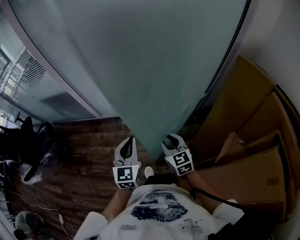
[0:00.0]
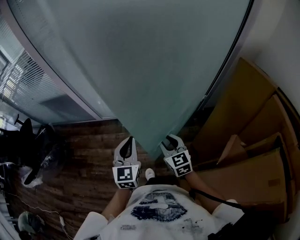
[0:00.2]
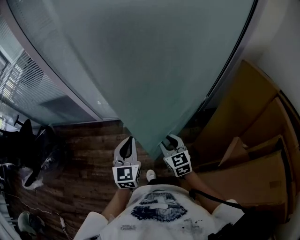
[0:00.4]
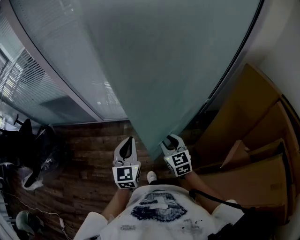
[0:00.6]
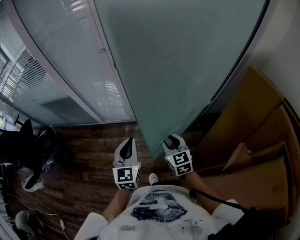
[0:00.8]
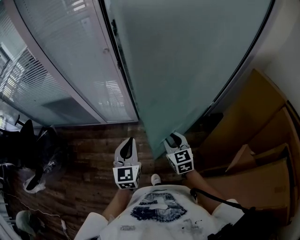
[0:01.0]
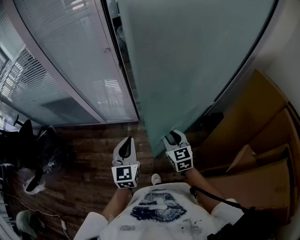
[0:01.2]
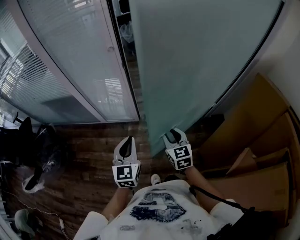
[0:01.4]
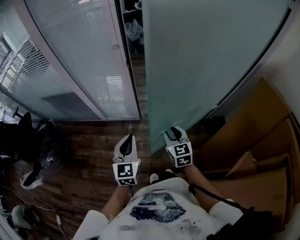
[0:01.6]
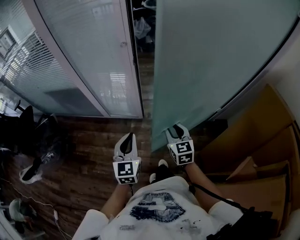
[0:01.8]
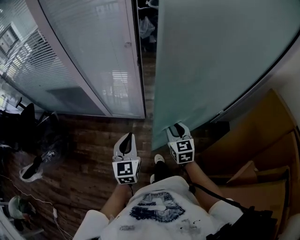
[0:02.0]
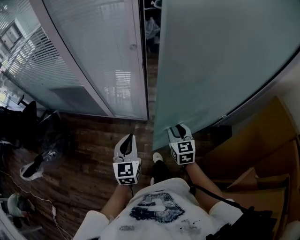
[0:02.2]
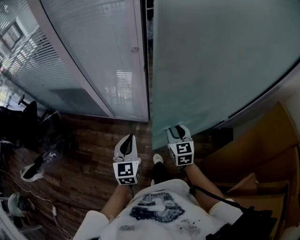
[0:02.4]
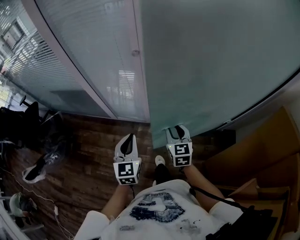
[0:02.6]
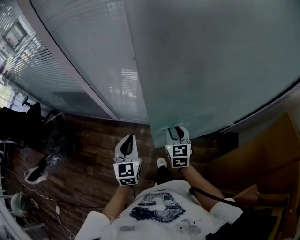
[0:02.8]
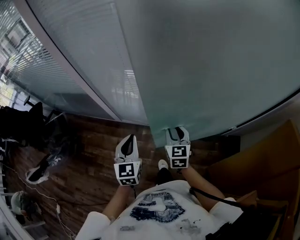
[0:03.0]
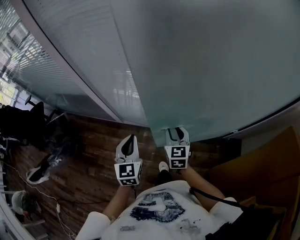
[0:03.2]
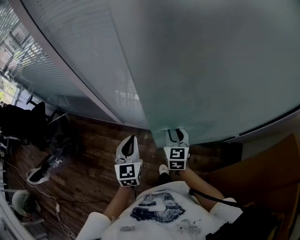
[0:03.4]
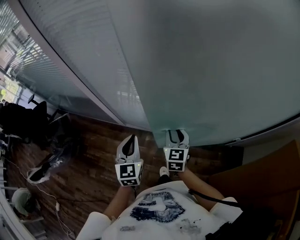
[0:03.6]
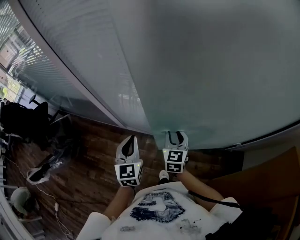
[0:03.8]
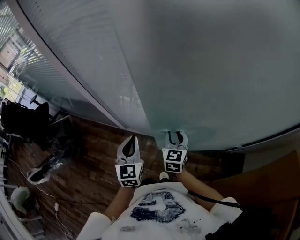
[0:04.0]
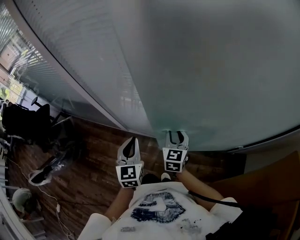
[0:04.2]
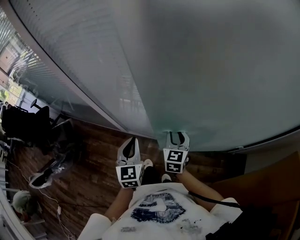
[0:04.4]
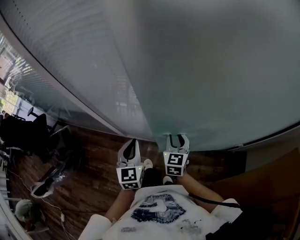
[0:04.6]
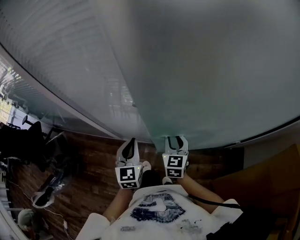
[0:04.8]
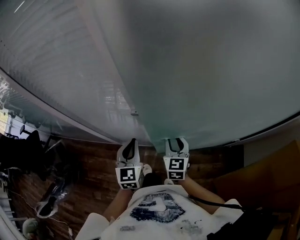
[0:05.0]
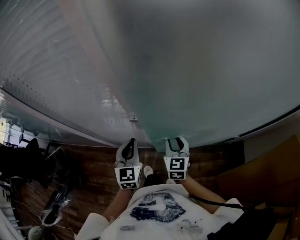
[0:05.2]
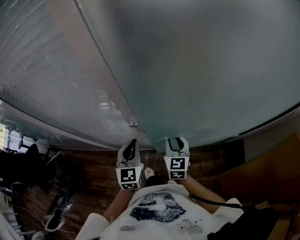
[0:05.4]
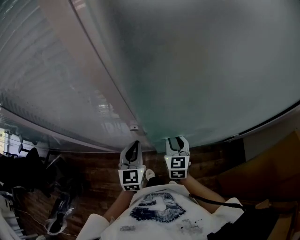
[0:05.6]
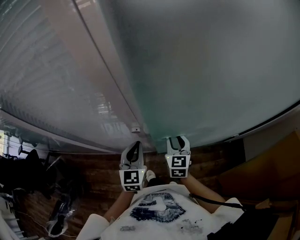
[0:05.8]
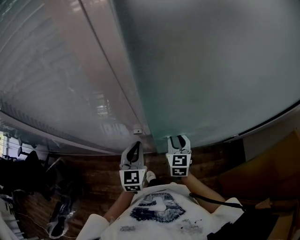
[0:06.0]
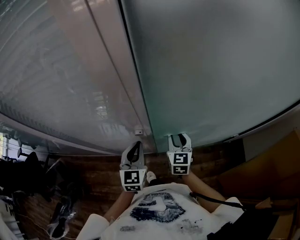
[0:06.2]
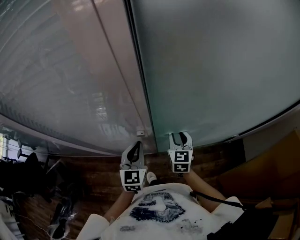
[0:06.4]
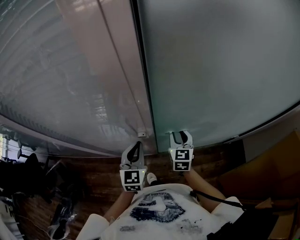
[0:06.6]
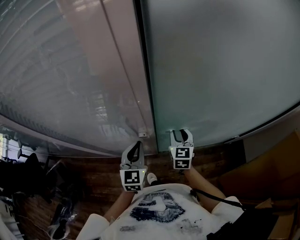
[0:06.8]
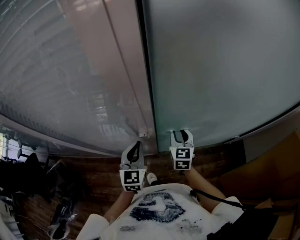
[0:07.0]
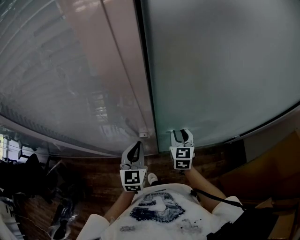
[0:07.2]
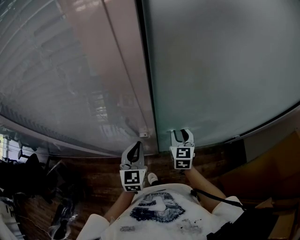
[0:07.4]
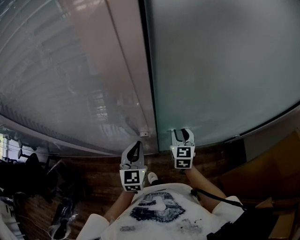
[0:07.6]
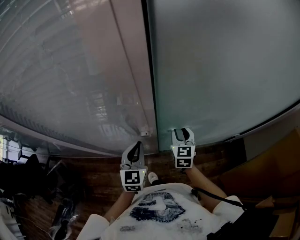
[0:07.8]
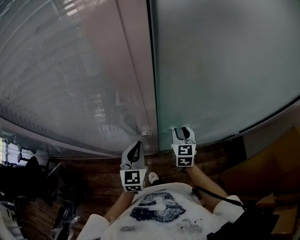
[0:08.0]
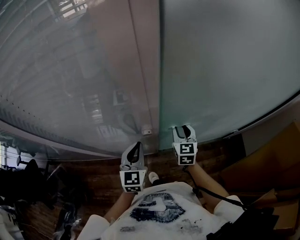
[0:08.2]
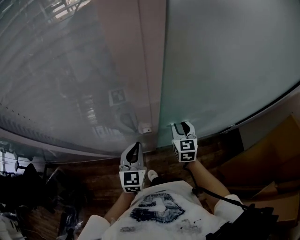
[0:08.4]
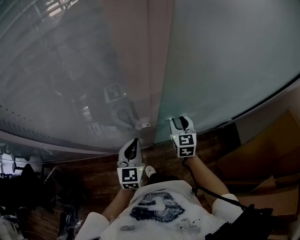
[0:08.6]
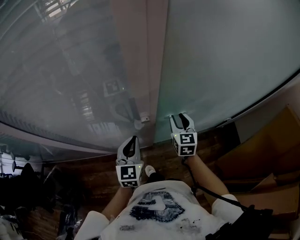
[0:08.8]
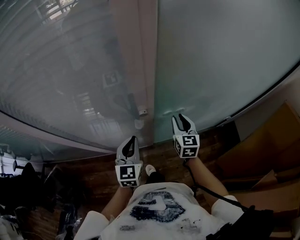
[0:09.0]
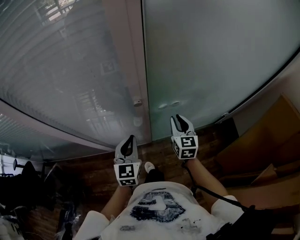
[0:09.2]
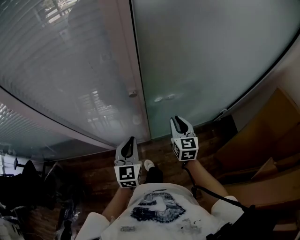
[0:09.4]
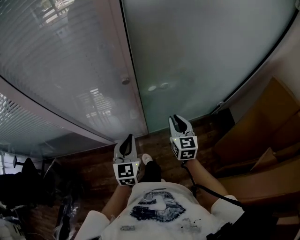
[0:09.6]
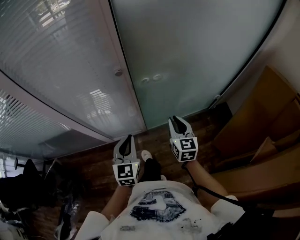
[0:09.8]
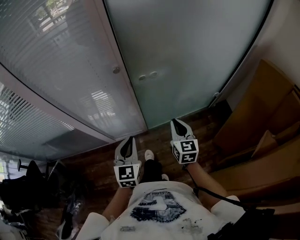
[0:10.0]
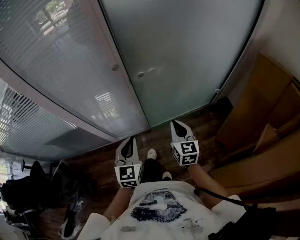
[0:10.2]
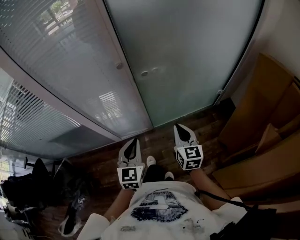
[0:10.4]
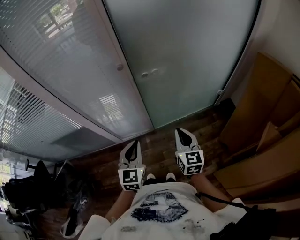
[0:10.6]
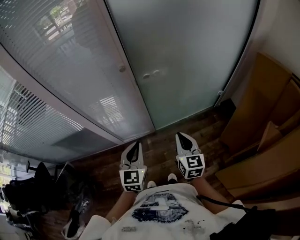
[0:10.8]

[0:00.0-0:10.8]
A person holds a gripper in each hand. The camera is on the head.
0:00.0 to 0:01.6: Both grippers move forward and to the left, about 15 cm.
0:01.6 to 0:03.0: The grippers both shift forward by some 15 cm.
0:03.0 to 0:04.6: The grippers both shift forward by approximately 15 cm.
0:04.6 to 0:06.2: Both grippers travel together forward, roughly 10 cm.
0:06.2 to 0:07.8: The grippers make only small movements.
0:07.8 to 0:09.2: The grippers both shift backward by some 10 cm.
0:09.2 to 0:10.8: The grippers both shift backward by some 25 cm. The right gripper closes up.

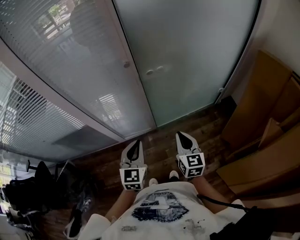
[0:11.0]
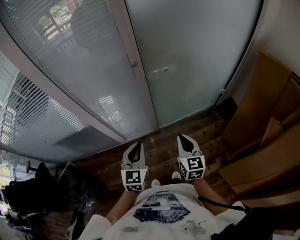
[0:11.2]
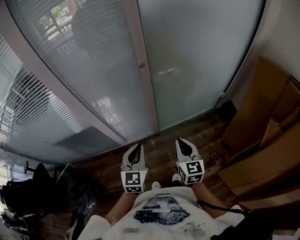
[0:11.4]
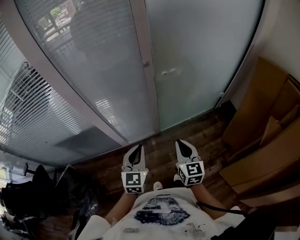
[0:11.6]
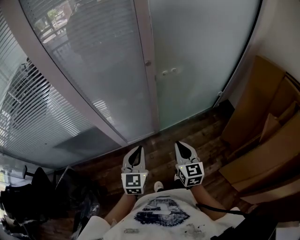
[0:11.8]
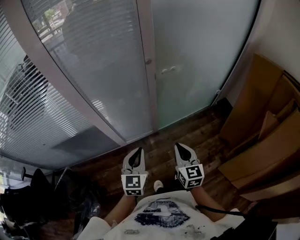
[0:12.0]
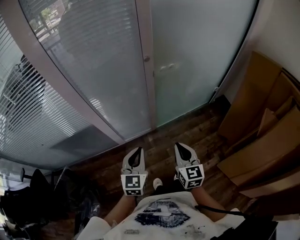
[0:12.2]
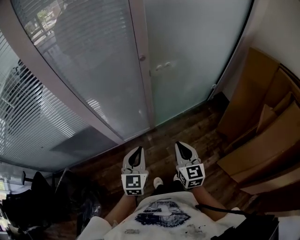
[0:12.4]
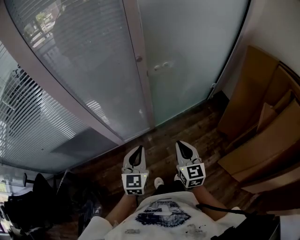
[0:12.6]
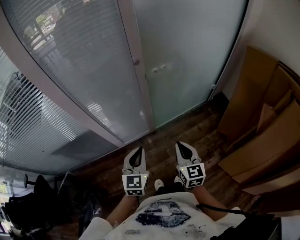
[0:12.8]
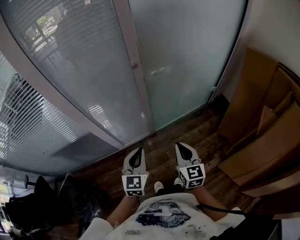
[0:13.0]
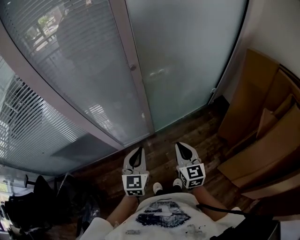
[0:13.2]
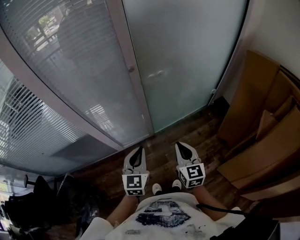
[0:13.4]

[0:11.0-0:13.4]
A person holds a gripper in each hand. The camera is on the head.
0:11.0 to 0:12.2: Both grippers move to the left and backward, roughly 15 cm.
0:12.2 to 0:13.4: Both grippers move to the right, some 5 cm.

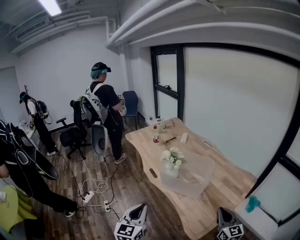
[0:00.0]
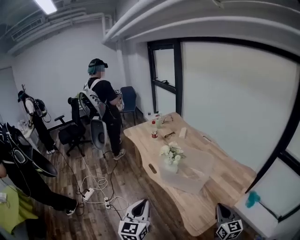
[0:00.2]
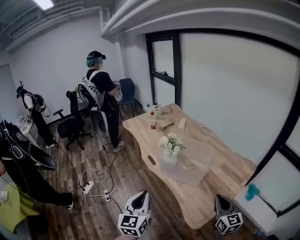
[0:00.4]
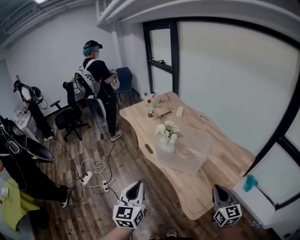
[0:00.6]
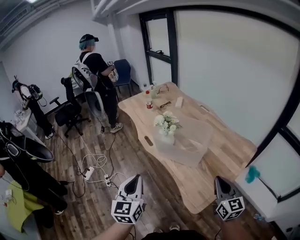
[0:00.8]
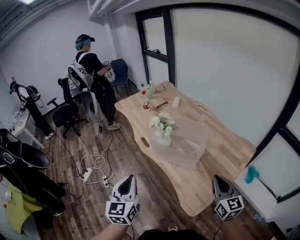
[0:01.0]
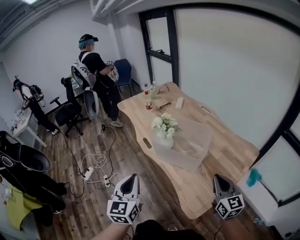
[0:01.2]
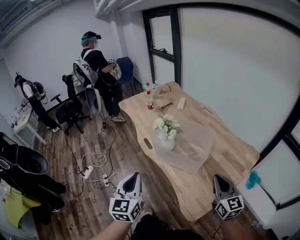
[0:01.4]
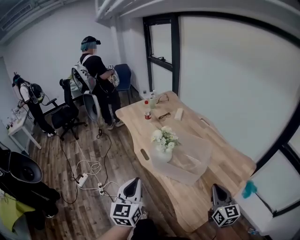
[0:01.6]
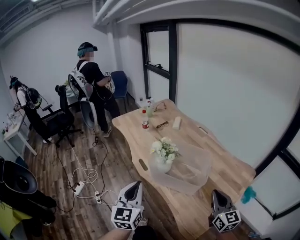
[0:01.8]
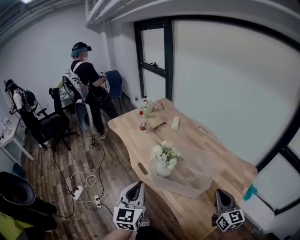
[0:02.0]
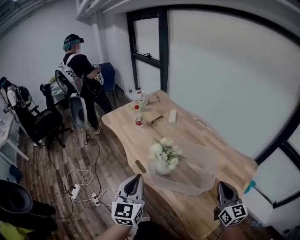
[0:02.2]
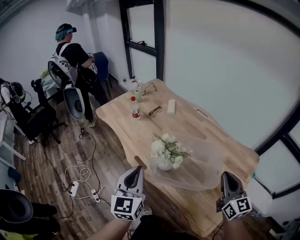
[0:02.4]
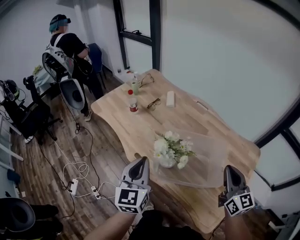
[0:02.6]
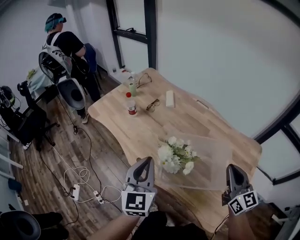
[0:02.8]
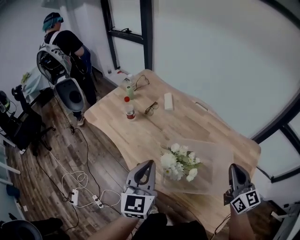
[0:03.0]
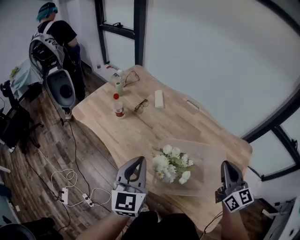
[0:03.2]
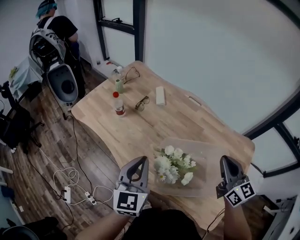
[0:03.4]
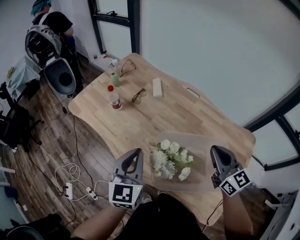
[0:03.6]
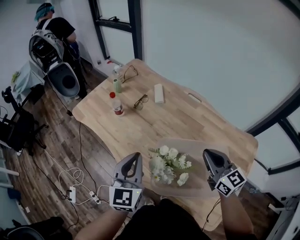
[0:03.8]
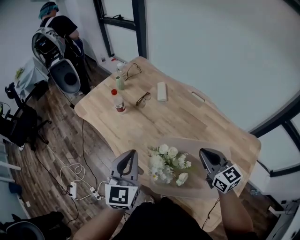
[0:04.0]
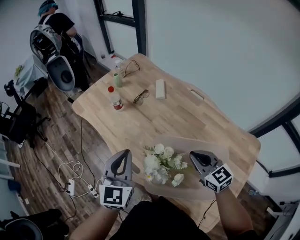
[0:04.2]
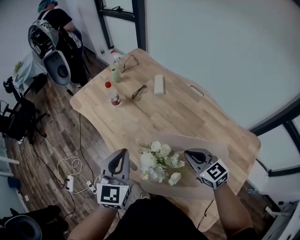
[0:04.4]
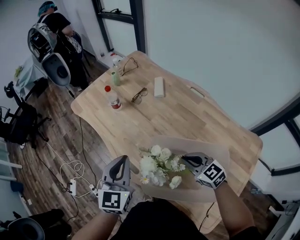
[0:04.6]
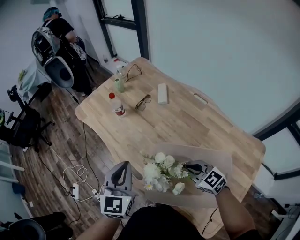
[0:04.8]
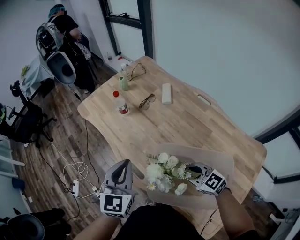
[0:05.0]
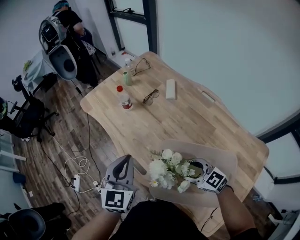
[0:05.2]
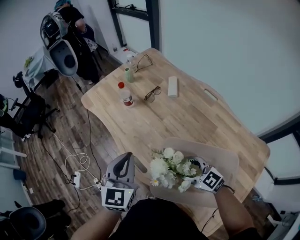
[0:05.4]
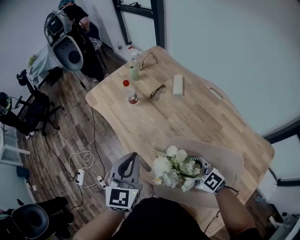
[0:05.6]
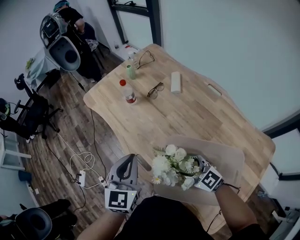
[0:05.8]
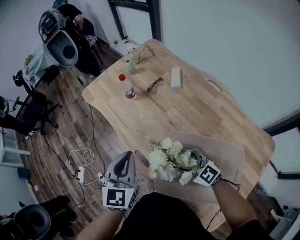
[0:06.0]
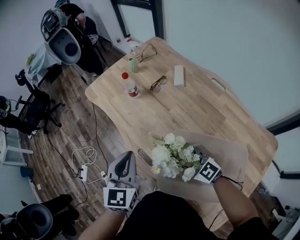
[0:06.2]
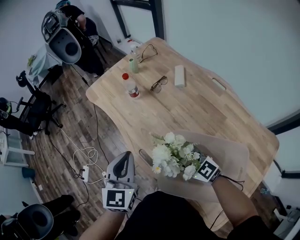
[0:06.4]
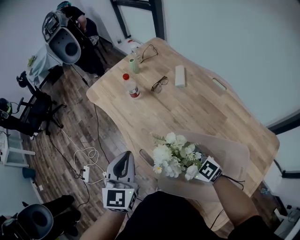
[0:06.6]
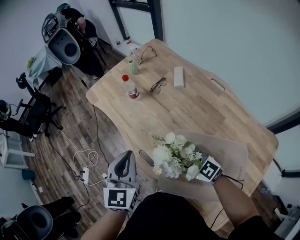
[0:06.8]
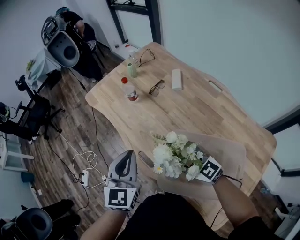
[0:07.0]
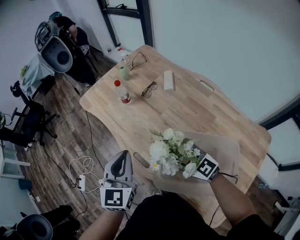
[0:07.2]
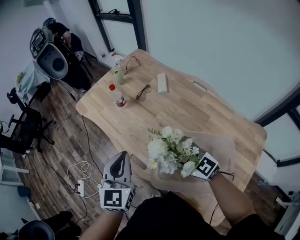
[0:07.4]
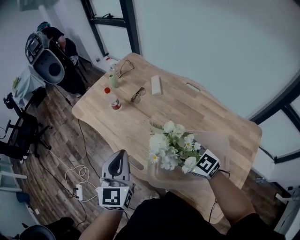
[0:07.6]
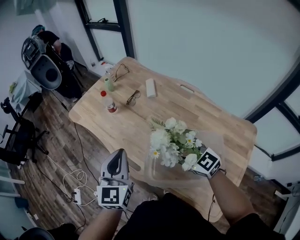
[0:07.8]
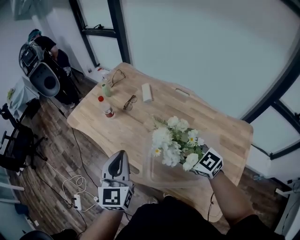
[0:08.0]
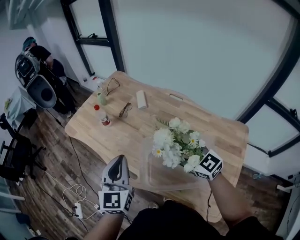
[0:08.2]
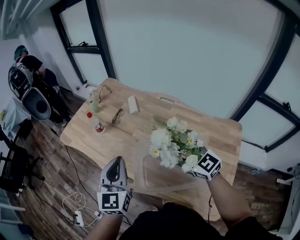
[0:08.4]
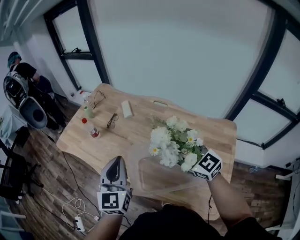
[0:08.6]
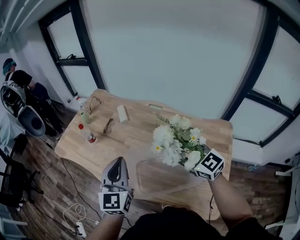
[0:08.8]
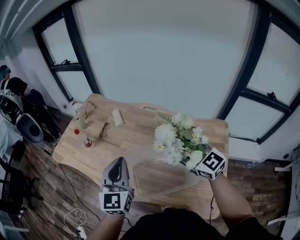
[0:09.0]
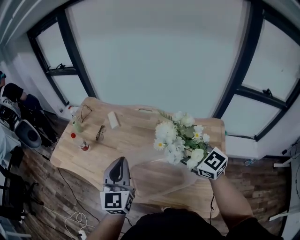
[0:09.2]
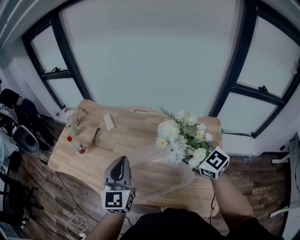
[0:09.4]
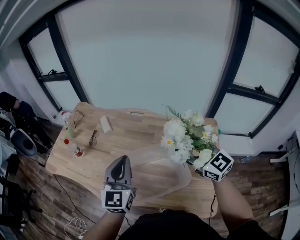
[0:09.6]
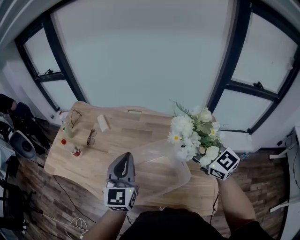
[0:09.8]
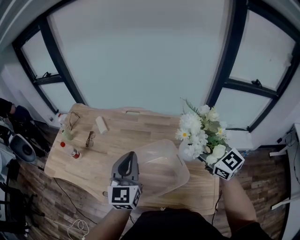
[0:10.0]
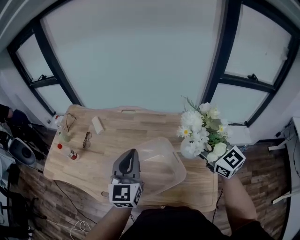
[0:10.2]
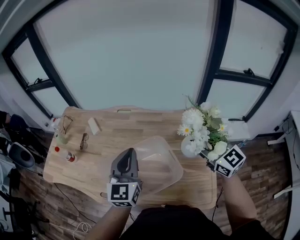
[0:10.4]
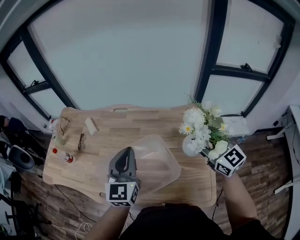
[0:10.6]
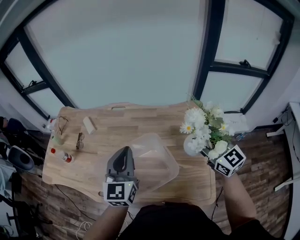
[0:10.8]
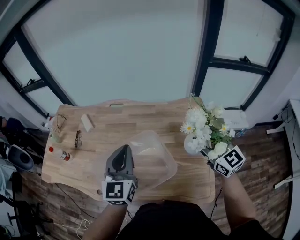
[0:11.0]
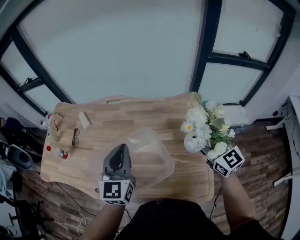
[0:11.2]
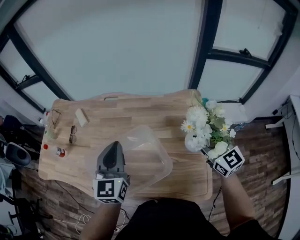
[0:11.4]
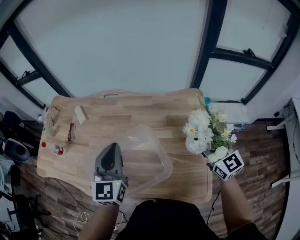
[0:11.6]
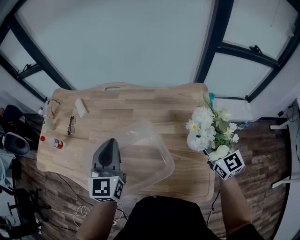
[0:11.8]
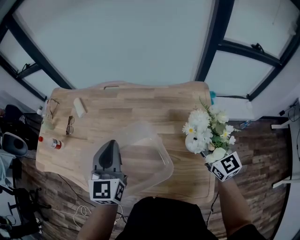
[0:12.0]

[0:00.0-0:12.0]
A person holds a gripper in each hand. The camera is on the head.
0:00.0 to 0:01.6: Both grippers travel together forward, roughly 10 cm.
0:01.6 to 0:03.0: The right gripper travels forward and to the left by approximately 20 cm. The left gripper is displaced forward by approximately 30 cm, and changes its angle by roughly 20 degrees.
0:03.0 to 0:04.4: The left gripper shifts about 10 cm forward and downward. The right gripper is displaced downward, forward and to the left by roughly 20 cm, and rotates roughly 40 degrees.
0:04.4 to 0:06.0: The right gripper heads to the left, covering roughly 10 cm, changes its angle by some 30 degrees, and opens up.
0:06.0 to 0:07.6: The right gripper heads upward, covering about 10 cm.
0:07.6 to 0:09.0: The grippers both shift to the right and upward by approximately 15 cm. The right gripper rotates some 30 degrees.
0:09.0 to 0:10.4: The two grippers go approximately 15 cm to the right. The right gripper rotates roughly 30 degrees.
0:10.4 to 0:12.0: The left gripper shifts roughly 5 cm downward. The right gripper goes some 15 cm downward and to the right.
